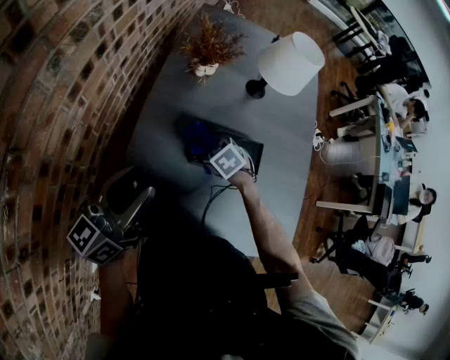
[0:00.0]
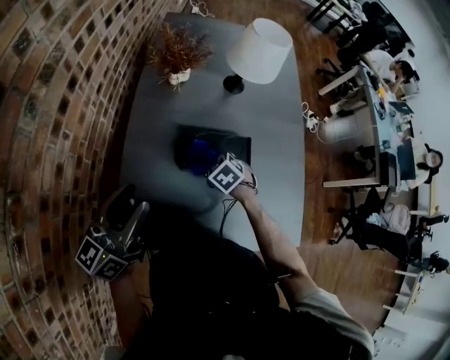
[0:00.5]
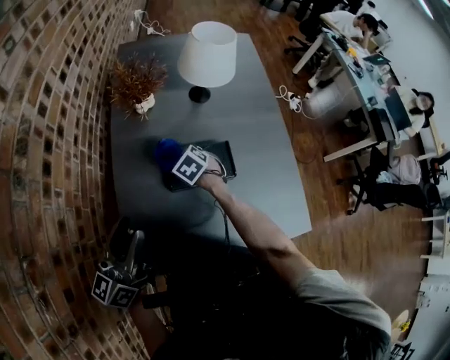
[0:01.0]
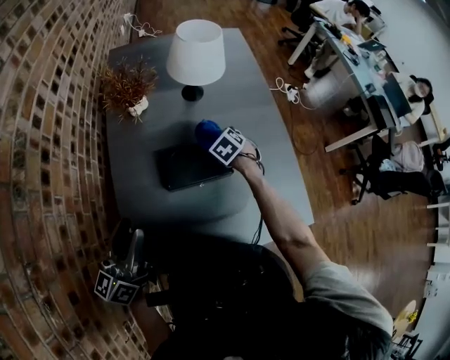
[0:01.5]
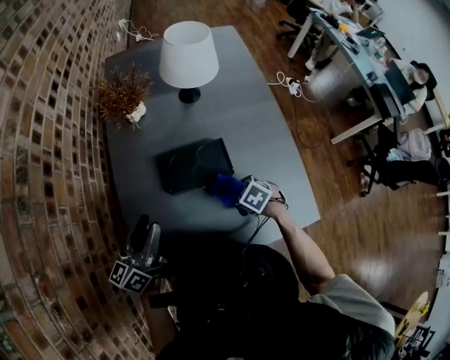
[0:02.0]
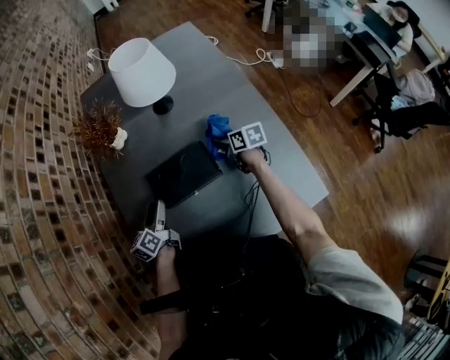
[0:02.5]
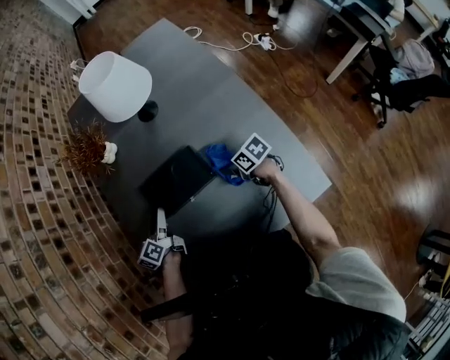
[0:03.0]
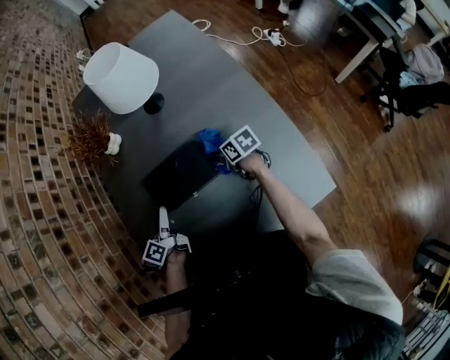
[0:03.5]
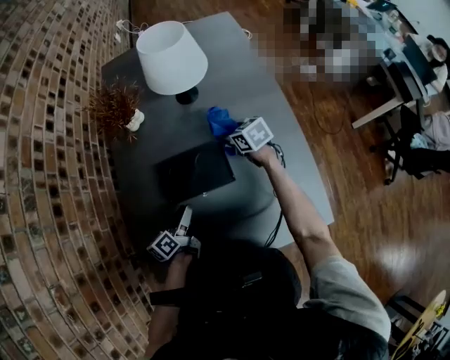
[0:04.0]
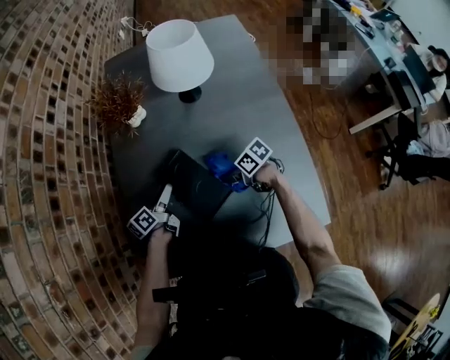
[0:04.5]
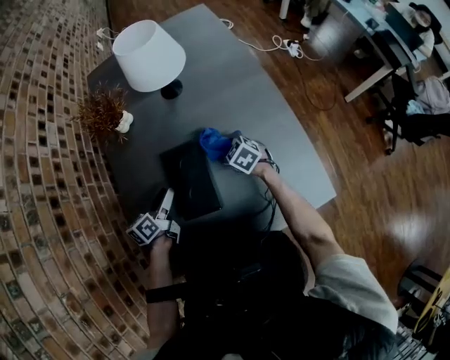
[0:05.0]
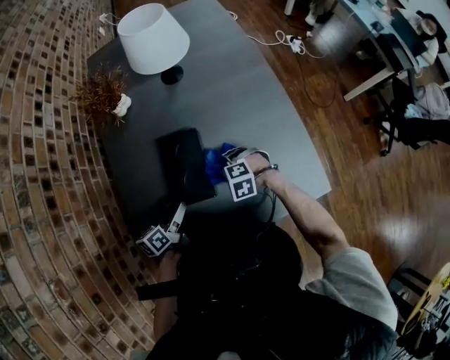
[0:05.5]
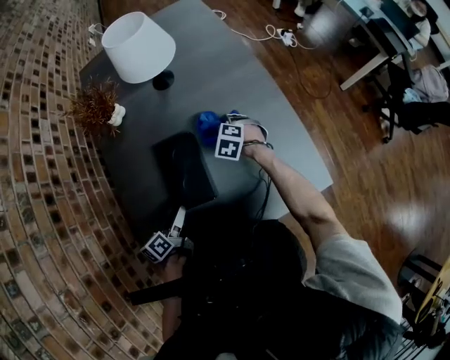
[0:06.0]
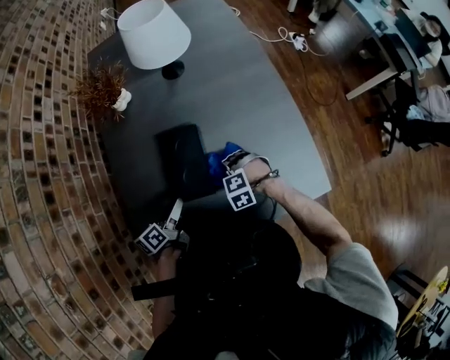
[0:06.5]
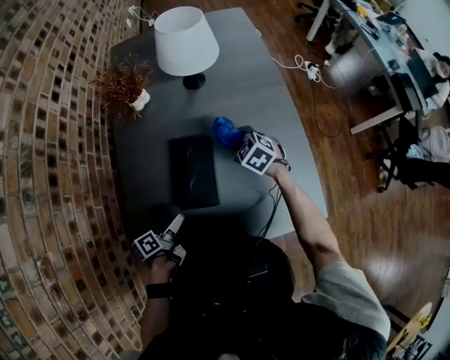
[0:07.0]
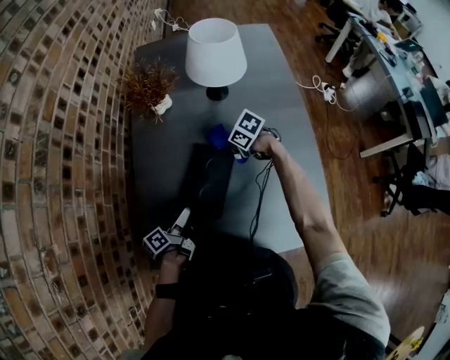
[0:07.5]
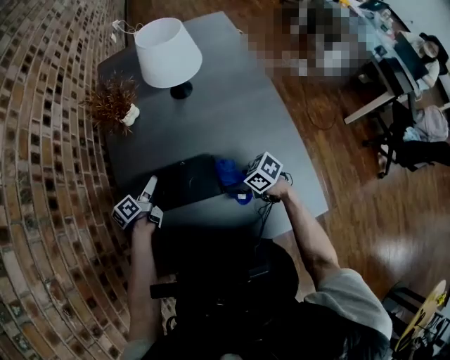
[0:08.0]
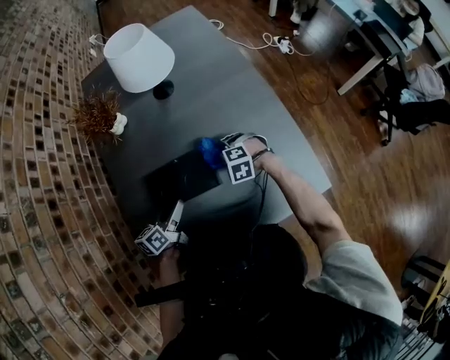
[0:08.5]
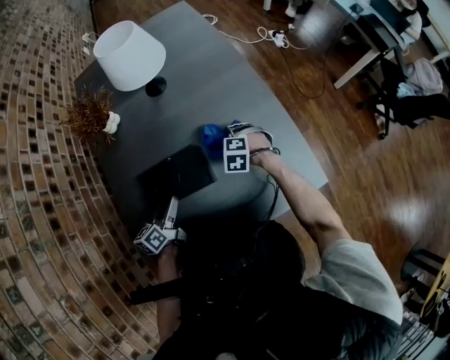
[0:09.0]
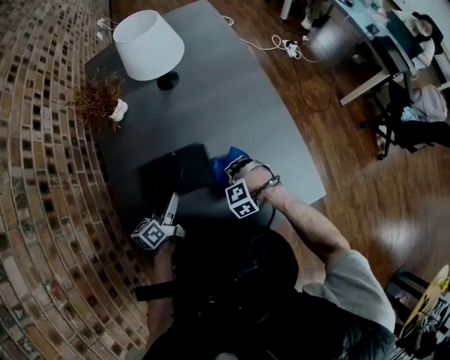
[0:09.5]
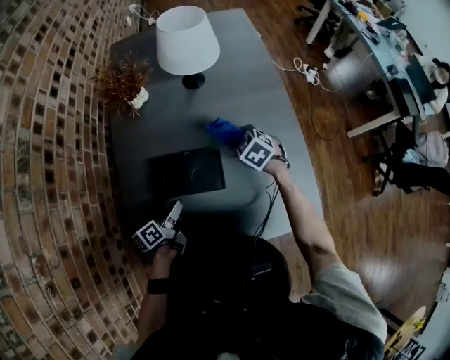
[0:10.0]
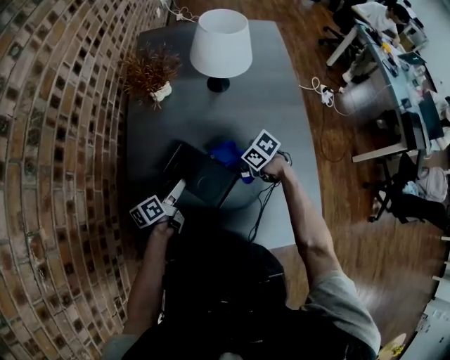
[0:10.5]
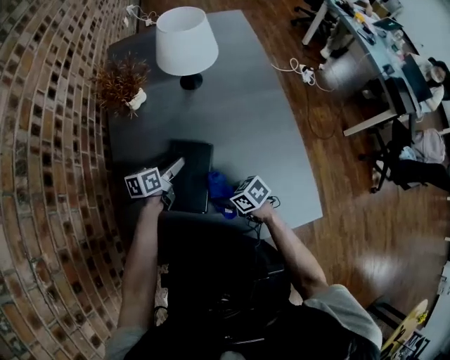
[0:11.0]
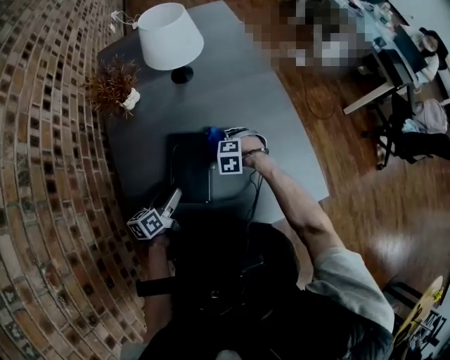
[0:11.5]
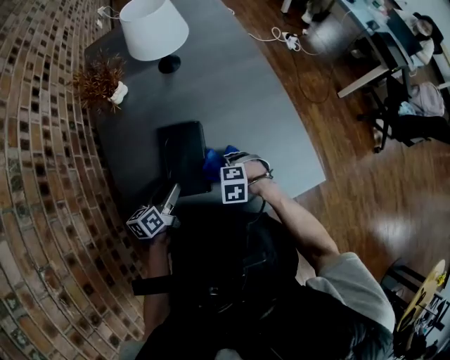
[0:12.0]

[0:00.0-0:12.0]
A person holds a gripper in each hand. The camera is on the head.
0:00.0 to 0:02.0: The right gripper travels to the right and backward by some 25 cm, and swivels some 20 degrees. The left gripper travels to the right and downward by some 10 cm.
0:02.0 to 0:04.0: The right gripper swings forward and backward, some 25 cm each way, with 2 reversals, and angles its fingers upward, by some 30 degrees. Meanwhile the left gripper moves downward and to the right, about 20 cm, and swivels some 30 degrees.
0:04.0 to 0:06.0: The right gripper changes its angle by approximately 40 degrees.
0:06.0 to 0:08.0: The right gripper moves about 10 cm upward and comes back, and rotates some 60 degrees. Meanwhile the left gripper ends up some 15 cm from where it was.
0:08.0 to 0:10.0: The left gripper changes place by some 15 cm. The right gripper shifts by about 15 cm, and turns by approximately 50 degrees.
0:10.0 to 0:12.0: The left gripper turns by about 20 degrees, while the right gripper changes place by about 20 cm, and rotates about 30 degrees.

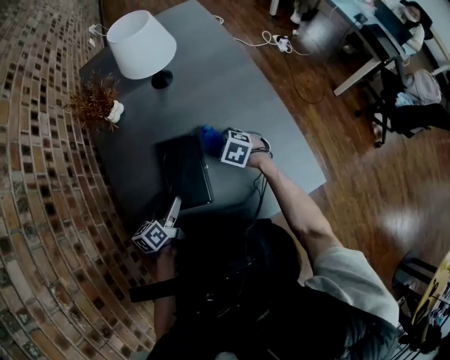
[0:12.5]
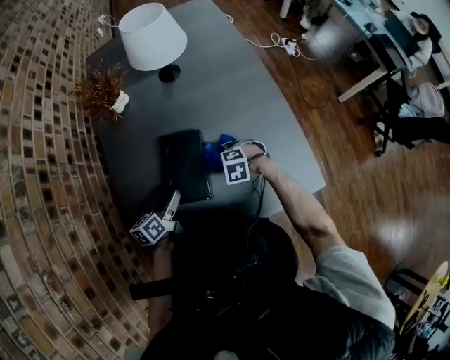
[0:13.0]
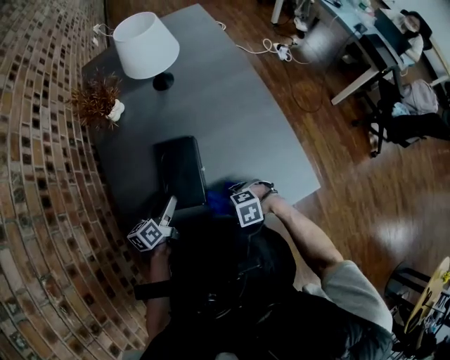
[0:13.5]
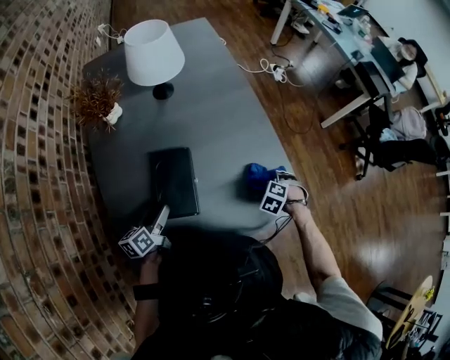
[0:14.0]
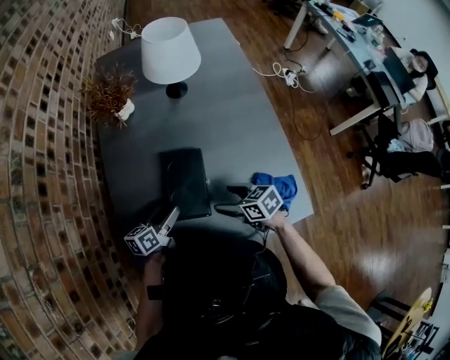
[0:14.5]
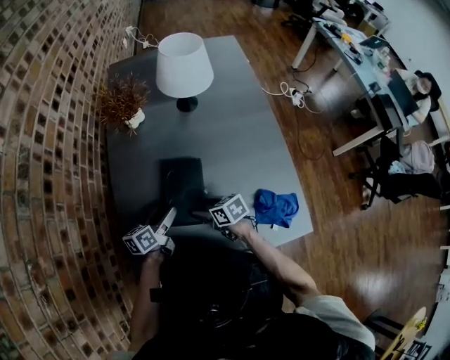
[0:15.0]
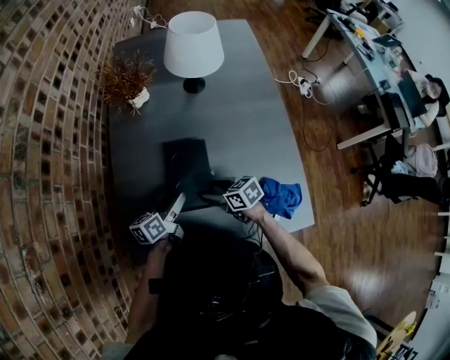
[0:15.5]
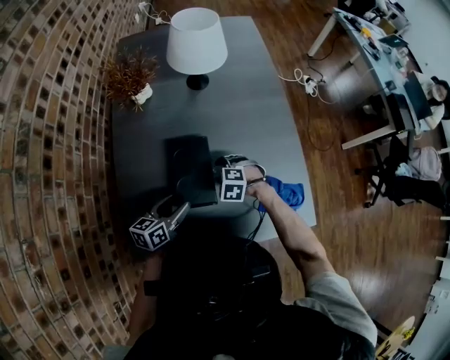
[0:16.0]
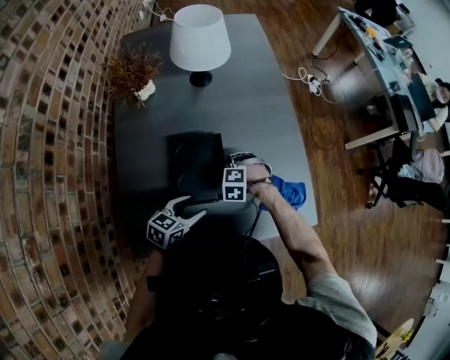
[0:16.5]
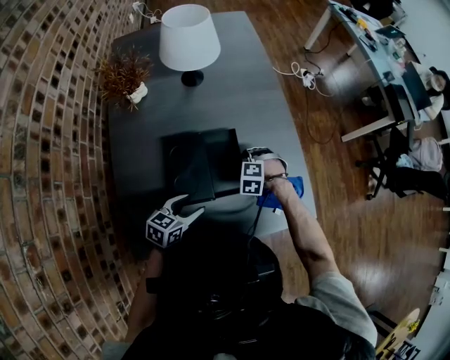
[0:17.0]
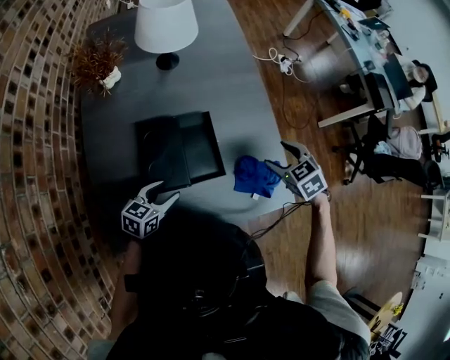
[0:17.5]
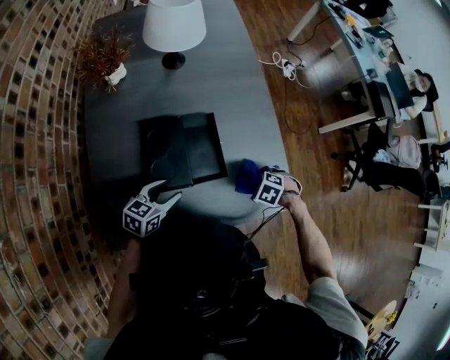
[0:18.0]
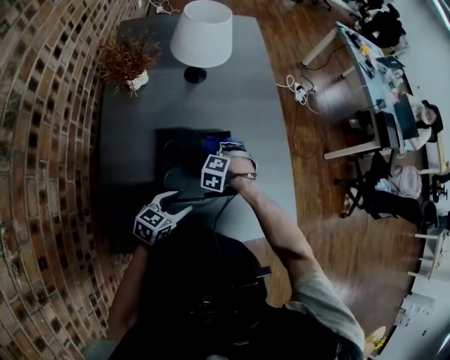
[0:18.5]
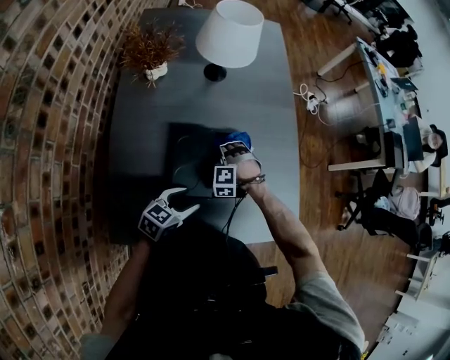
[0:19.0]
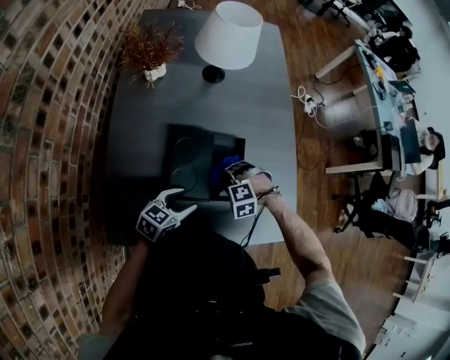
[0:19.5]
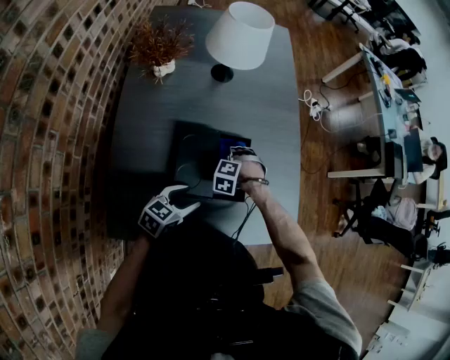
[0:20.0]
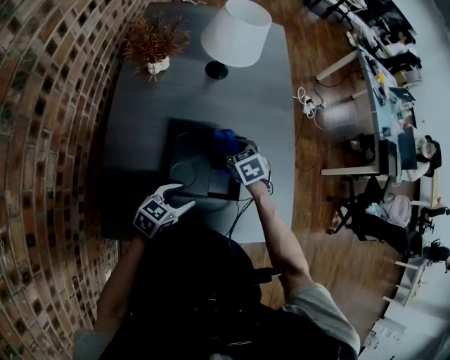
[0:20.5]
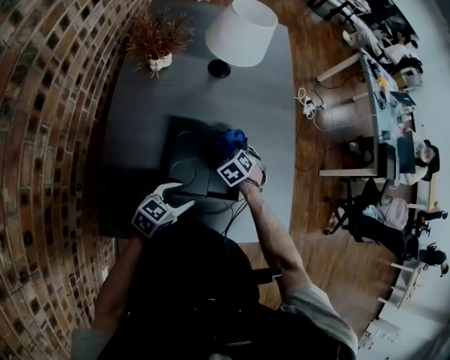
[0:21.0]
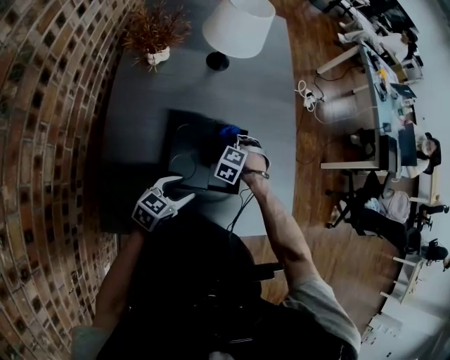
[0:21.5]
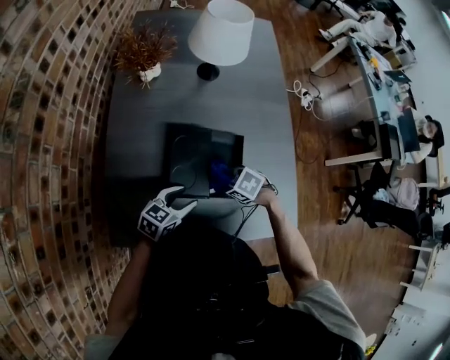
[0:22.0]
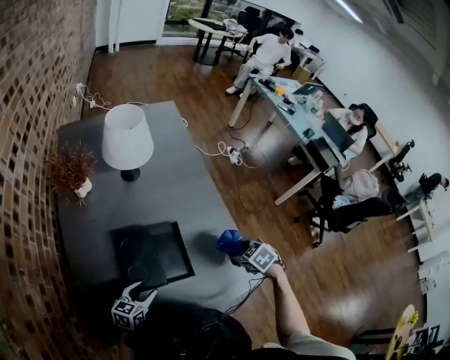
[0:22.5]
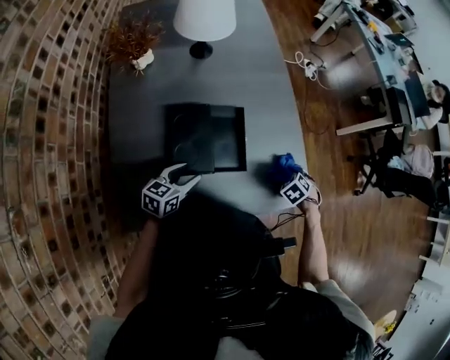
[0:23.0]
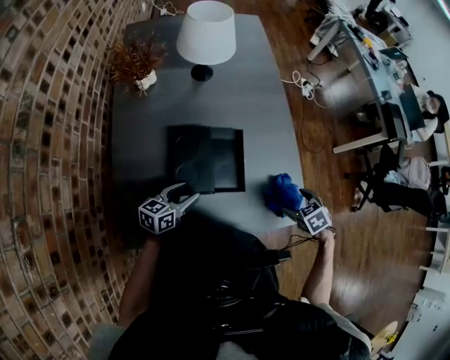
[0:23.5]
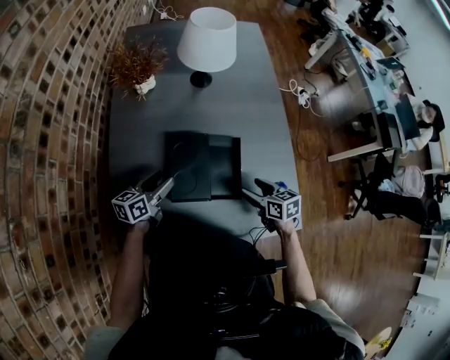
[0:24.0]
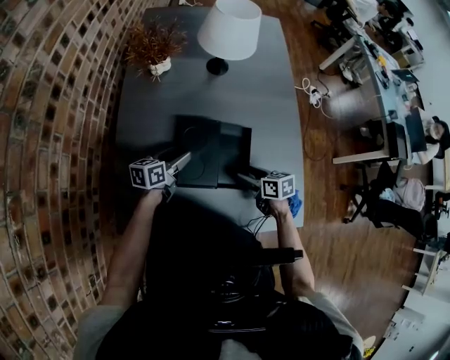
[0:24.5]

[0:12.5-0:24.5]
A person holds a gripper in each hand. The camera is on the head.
0:12.5 to 0:14.5: The right gripper turns by approximately 40 degrees, and opens up.
0:14.5 to 0:16.5: The right gripper changes place by approximately 10 cm, twists about 70 degrees counterclockwise, seen from behind, and closes, while the left gripper changes place by about 10 cm, and changes its angle by approximately 30 degrees.
0:16.5 to 0:18.5: The right gripper moves about 15 cm upward and comes back.
0:18.5 to 0:20.5: The right gripper heads upward, covering about 5 cm, and rolls clockwise, seen from behind, by approximately 40 degrees.
0:20.5 to 0:22.5: The right gripper goes downward and returns, some 10 cm each way.
0:22.5 to 0:24.5: The right gripper swings up and down, about 15 cm each way, with 2 reversals, and changes its angle by about 40 degrees. Meanwhile the left gripper changes place by roughly 15 cm, and swivels roughly 30 degrees.

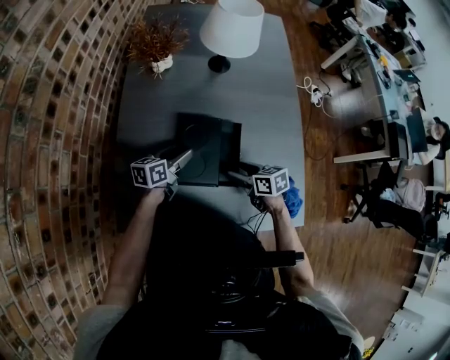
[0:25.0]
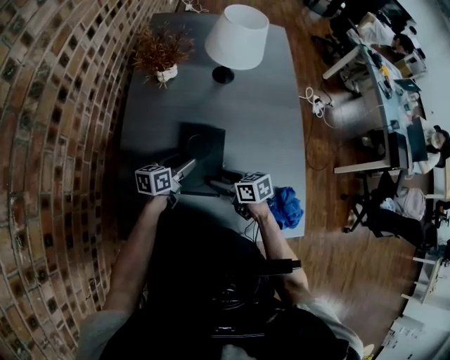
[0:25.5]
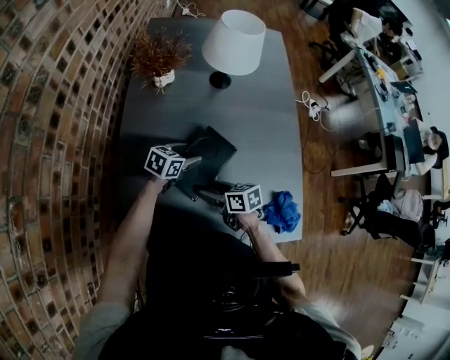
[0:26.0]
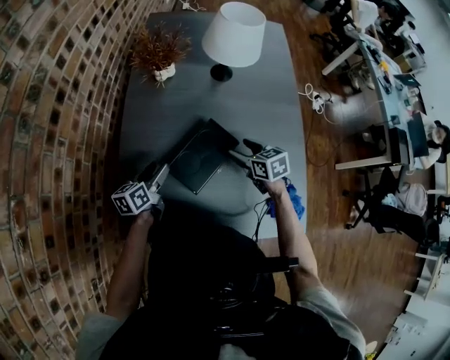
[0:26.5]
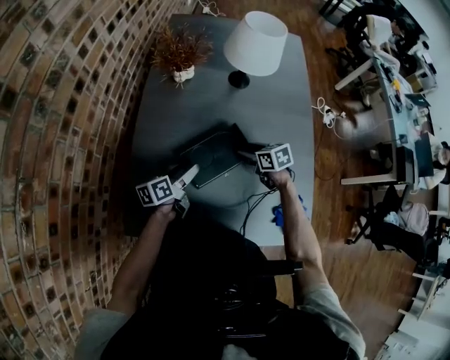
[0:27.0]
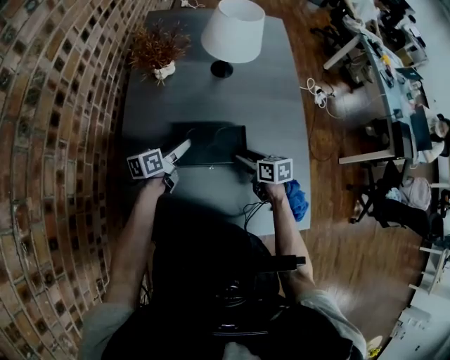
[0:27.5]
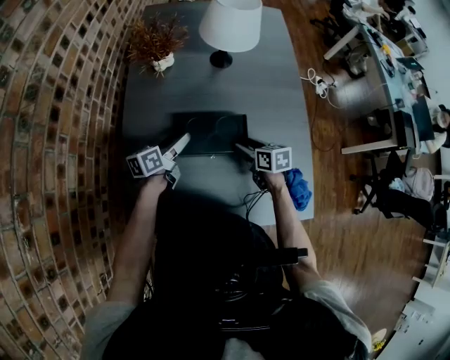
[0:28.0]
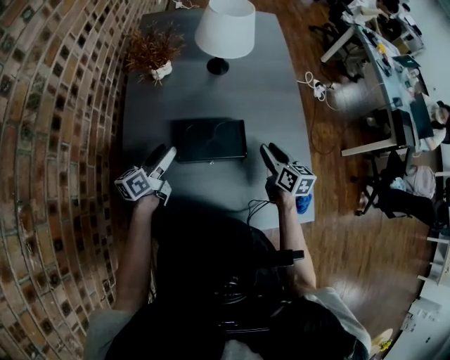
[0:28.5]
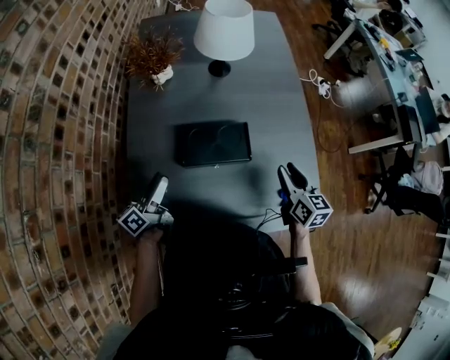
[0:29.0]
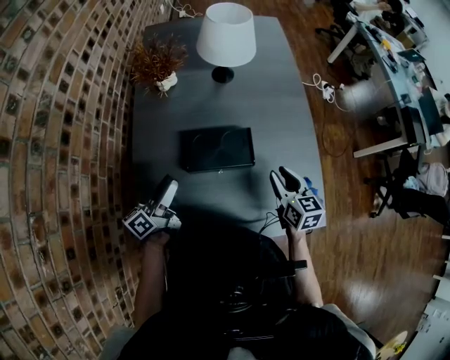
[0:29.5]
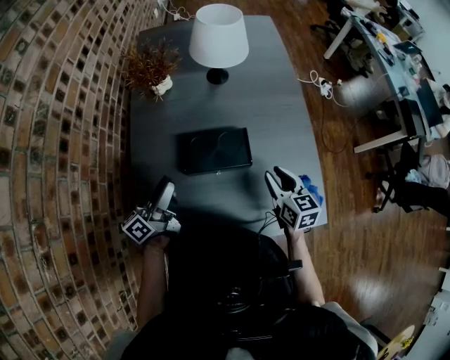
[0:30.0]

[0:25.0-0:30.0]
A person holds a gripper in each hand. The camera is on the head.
0:25.0 to 0:27.5: The grippers both shift forward by roughly 5 cm. The left gripper goes to the left and returns, about 10 cm each way.
0:27.5 to 0:30.0: The left gripper is displaced upward and backward by approximately 15 cm, and swivels roughly 30 degrees. Meanwhile the right gripper goes about 15 cm upward, backward and to the right, and changes its angle by about 30 degrees.
